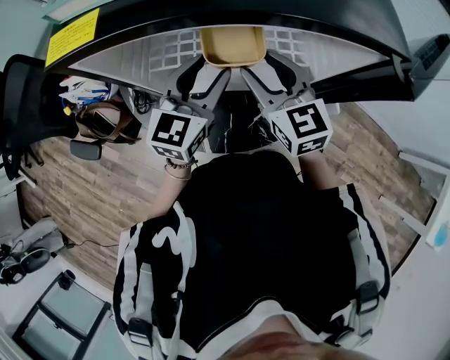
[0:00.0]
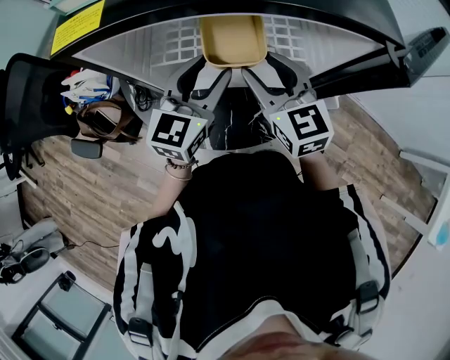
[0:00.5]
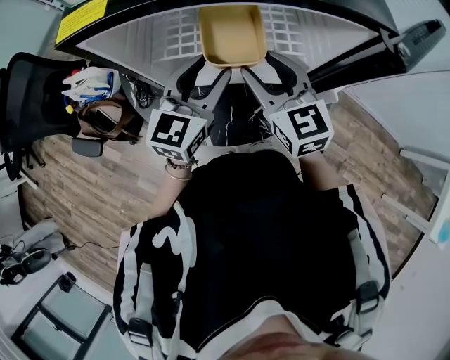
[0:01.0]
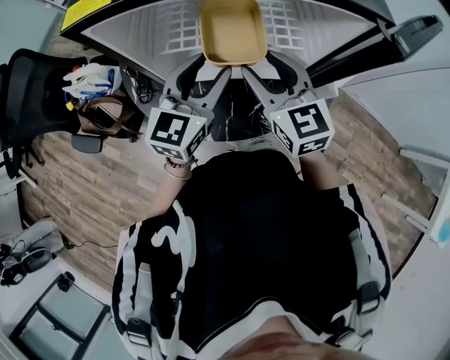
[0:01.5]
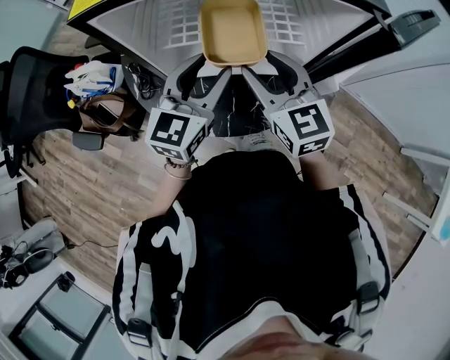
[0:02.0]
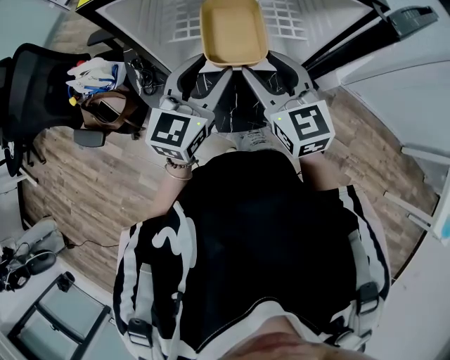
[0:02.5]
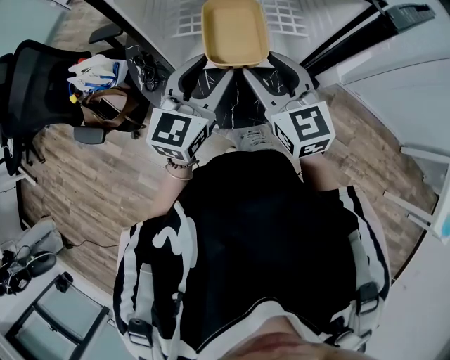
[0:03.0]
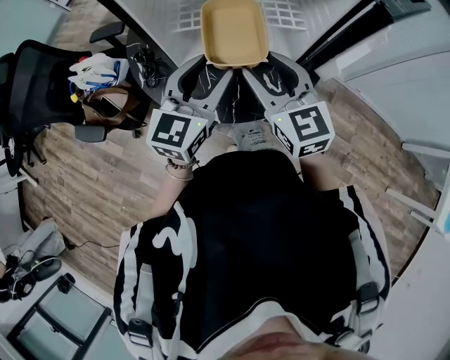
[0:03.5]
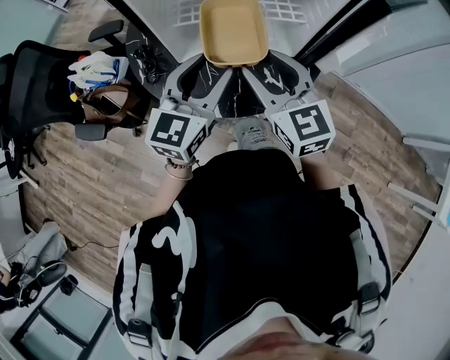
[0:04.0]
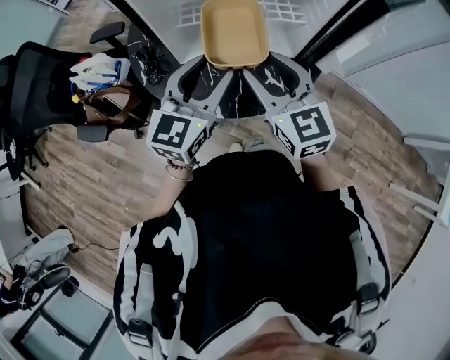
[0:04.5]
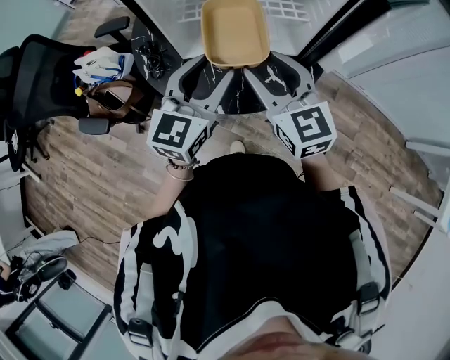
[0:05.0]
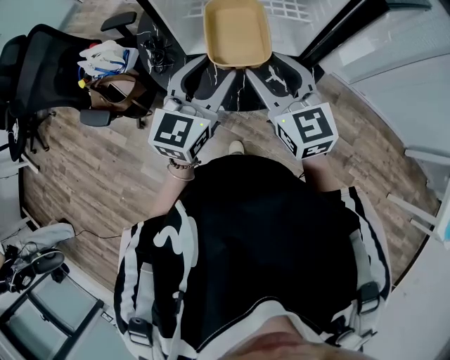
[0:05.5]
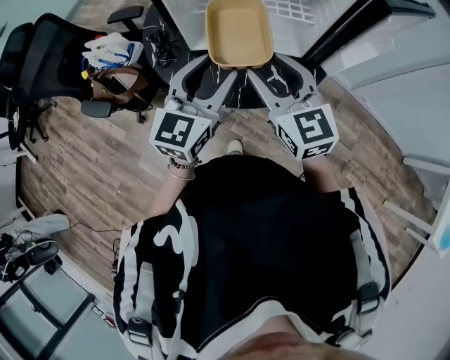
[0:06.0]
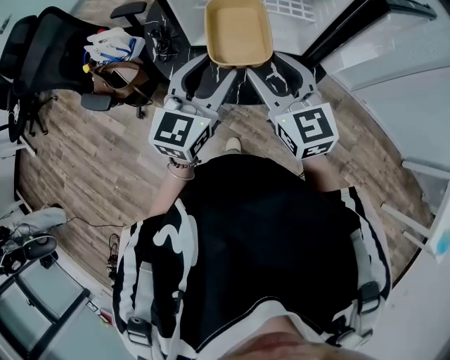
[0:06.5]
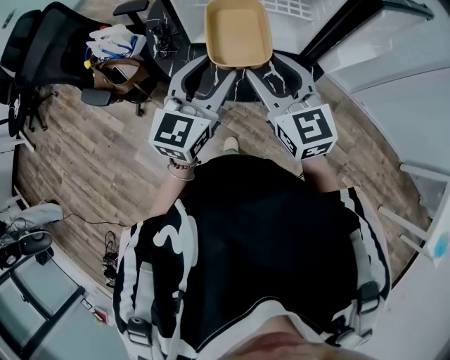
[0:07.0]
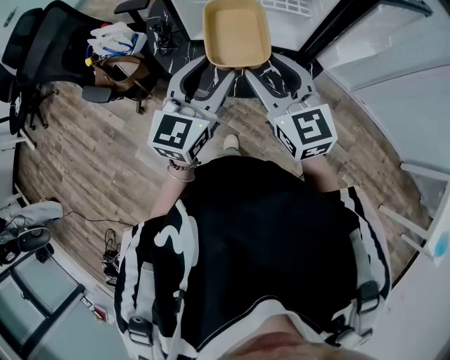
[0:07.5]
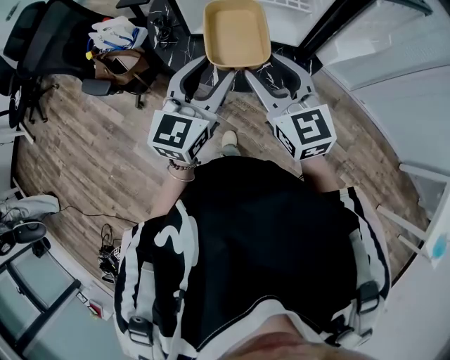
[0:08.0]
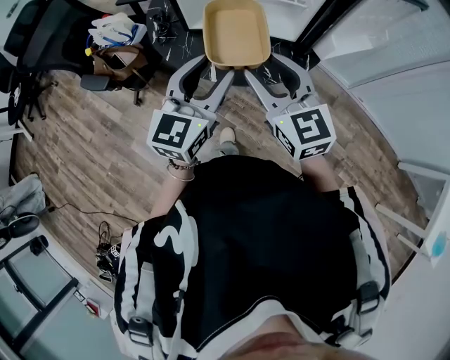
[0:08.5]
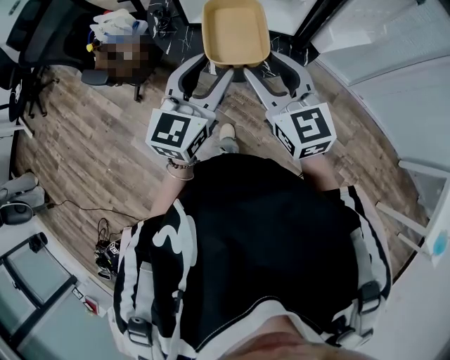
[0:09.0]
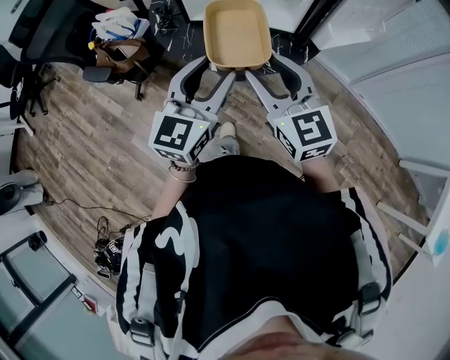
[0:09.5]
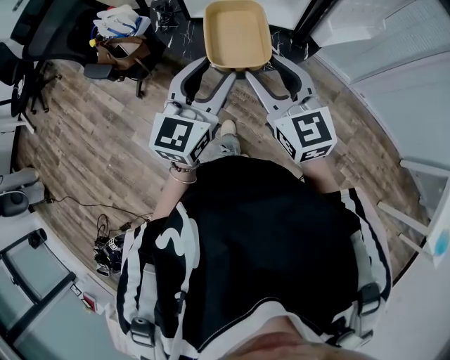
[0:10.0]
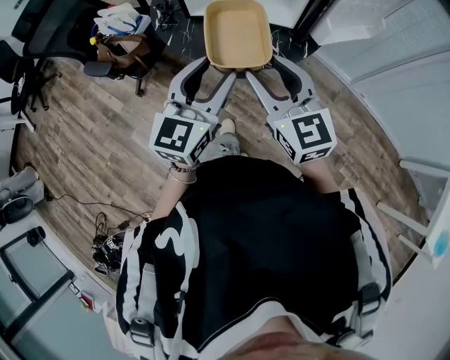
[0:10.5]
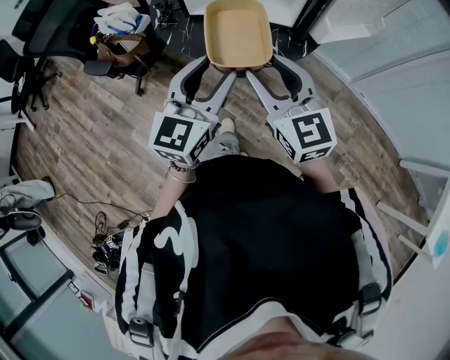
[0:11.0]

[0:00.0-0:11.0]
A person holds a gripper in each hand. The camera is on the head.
0:00.0 to 0:02.0: The two grippers go some 5 cm backward.
0:02.0 to 0:03.5: The two grippers go roughly 5 cm backward.
0:03.5 to 0:05.5: There are only small adjustments of the grippers.
0:05.5 to 0:07.5: Both grippers travel together backward, approximately 5 cm.
0:07.5 to 0:09.0: Both grippers move backward, some 5 cm.
0:09.0 to 0:11.0: The left gripper shifts roughly 5 cm backward. The right gripper changes place by some 5 cm.

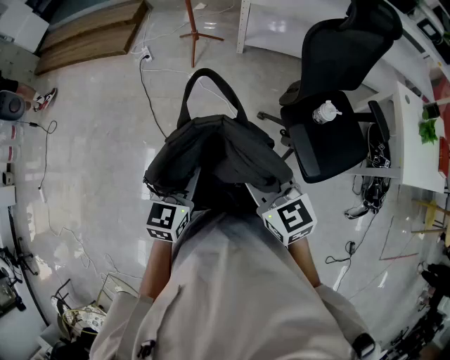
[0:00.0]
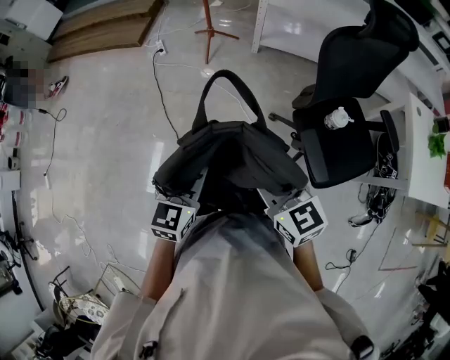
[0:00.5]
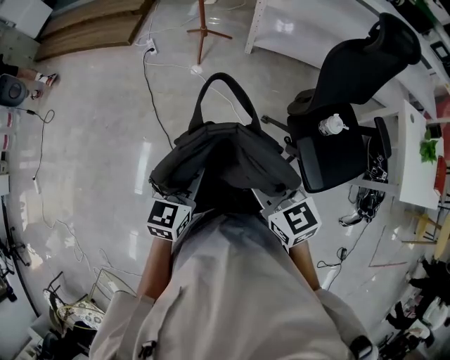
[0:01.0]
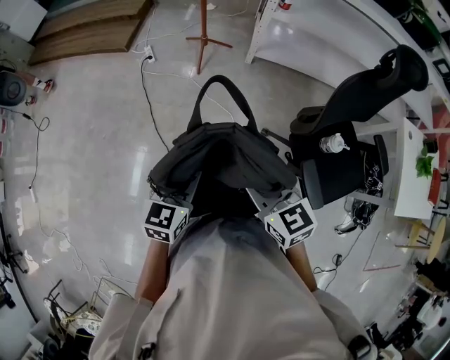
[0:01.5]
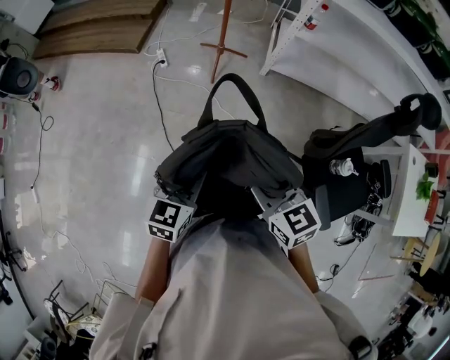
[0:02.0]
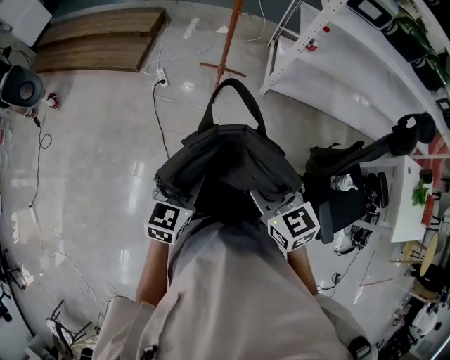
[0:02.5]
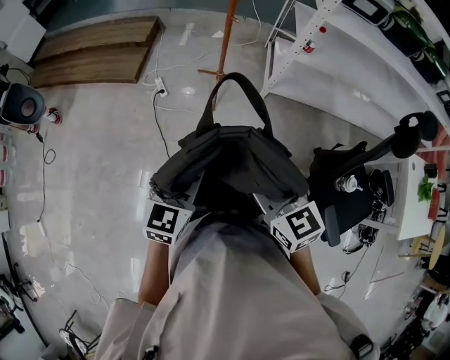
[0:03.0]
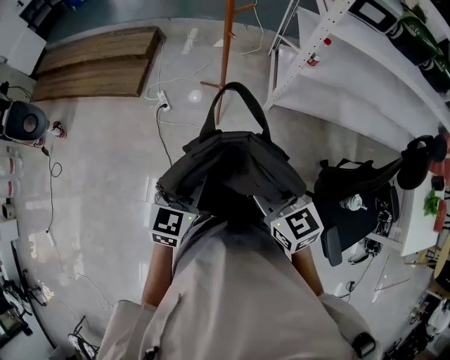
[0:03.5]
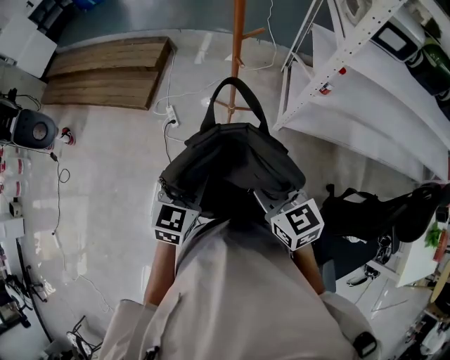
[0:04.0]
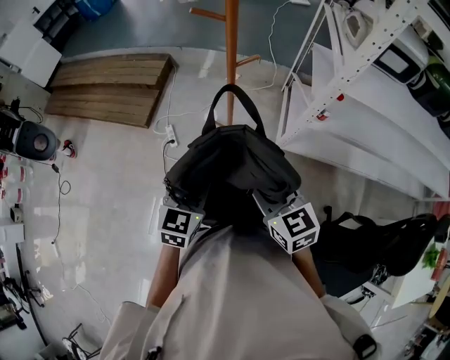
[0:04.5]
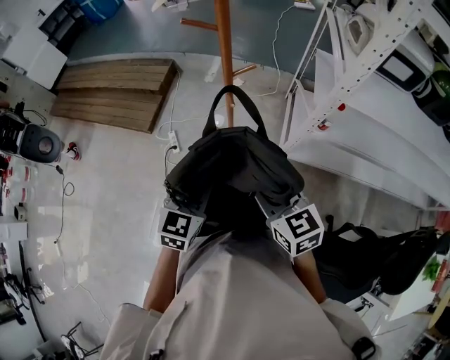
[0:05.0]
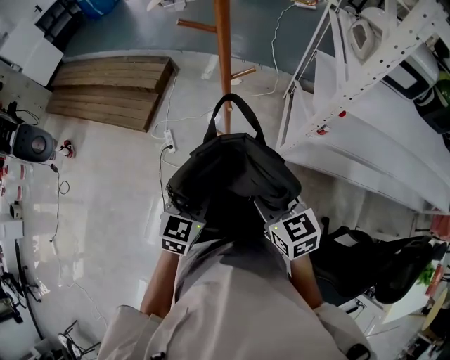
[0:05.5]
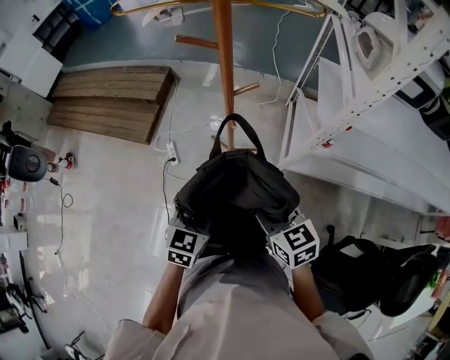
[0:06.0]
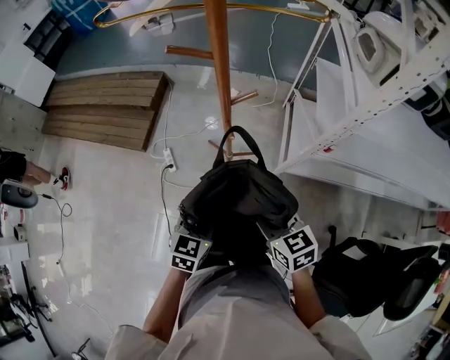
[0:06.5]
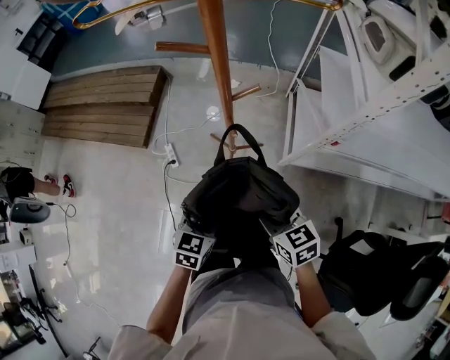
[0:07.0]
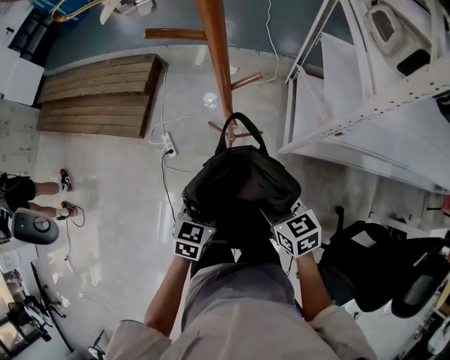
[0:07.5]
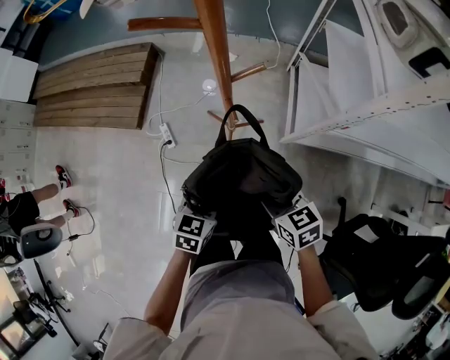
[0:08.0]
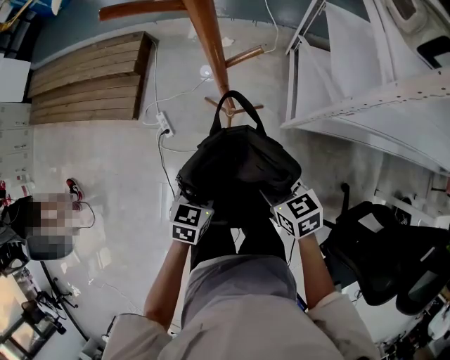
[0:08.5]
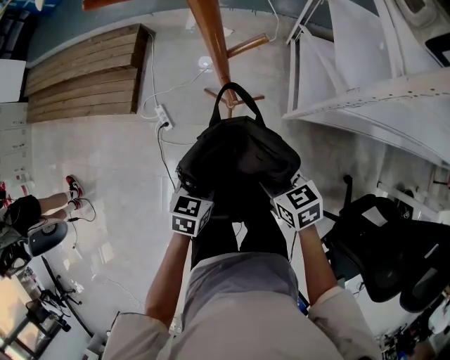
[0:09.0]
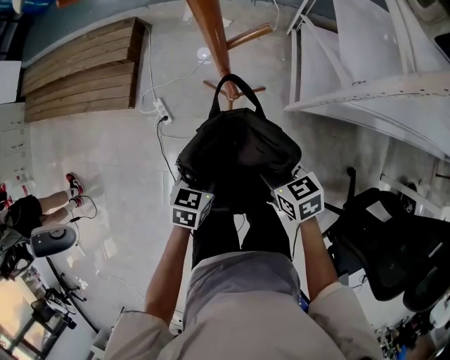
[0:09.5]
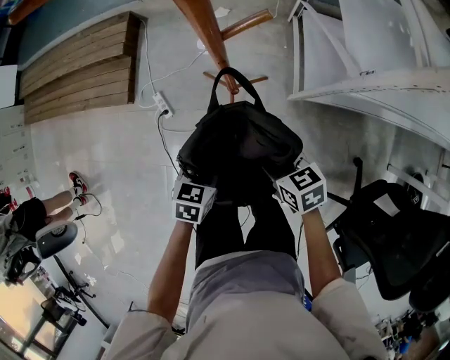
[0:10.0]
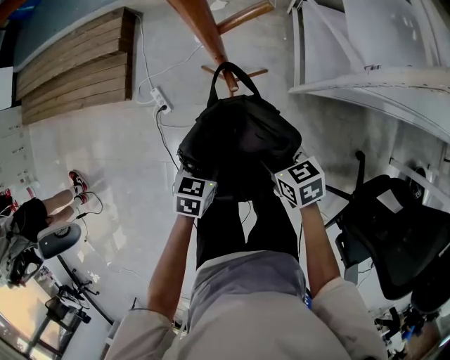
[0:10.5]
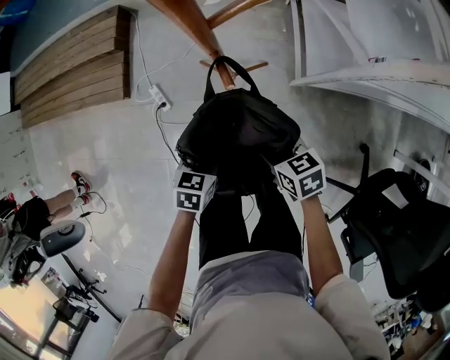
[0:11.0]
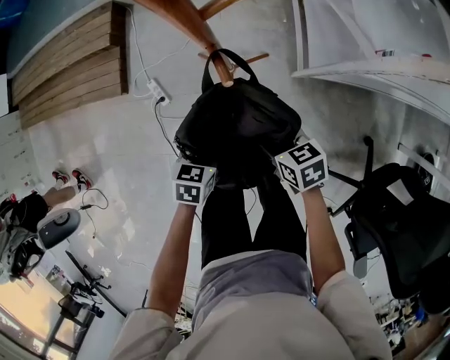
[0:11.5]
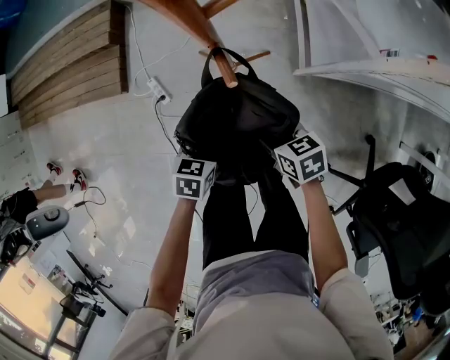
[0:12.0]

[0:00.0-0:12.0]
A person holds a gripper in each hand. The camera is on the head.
0:00.0 to 0:02.0: The grippers both shift forward and to the left by about 30 cm.
0:02.0 to 0:04.0: The two grippers go about 35 cm forward.
0:04.0 to 0:06.0: The right gripper moves forward and to the right, approximately 20 cm. Meanwhile the left gripper goes some 20 cm forward, to the right and downward.
0:06.0 to 0:08.0: The grippers both shift downward and forward by about 15 cm.
0:08.0 to 0:10.0: Both grippers move downward, approximately 10 cm.
0:10.0 to 0:12.0: Both grippers travel together downward, roughly 10 cm.

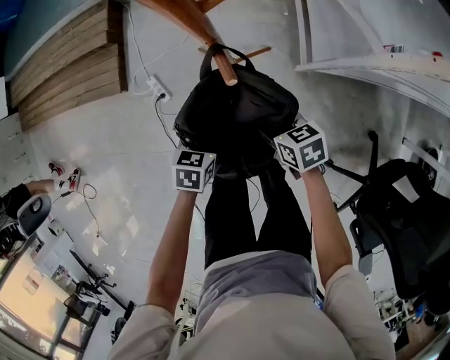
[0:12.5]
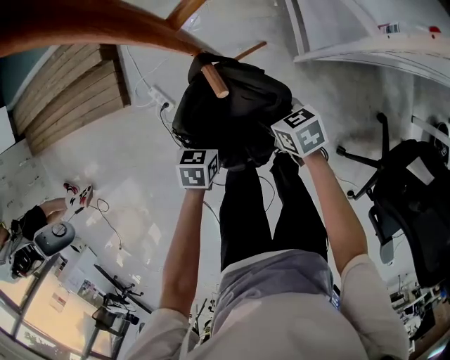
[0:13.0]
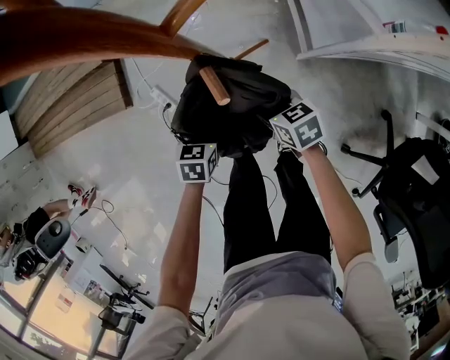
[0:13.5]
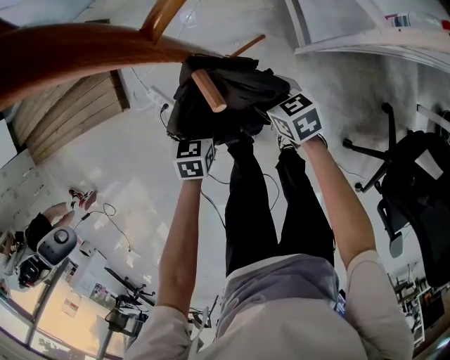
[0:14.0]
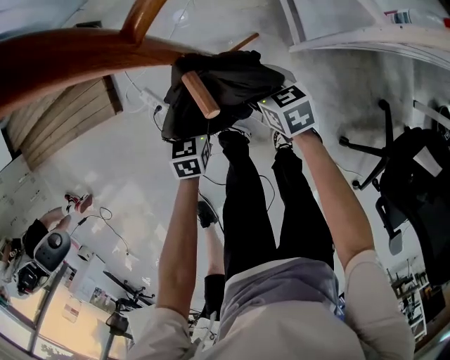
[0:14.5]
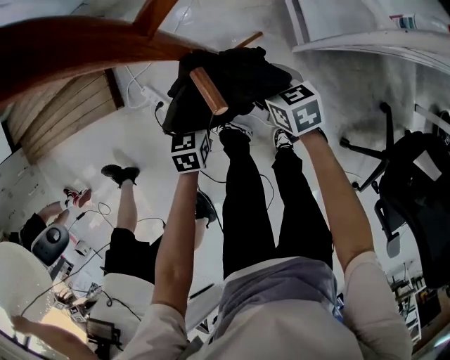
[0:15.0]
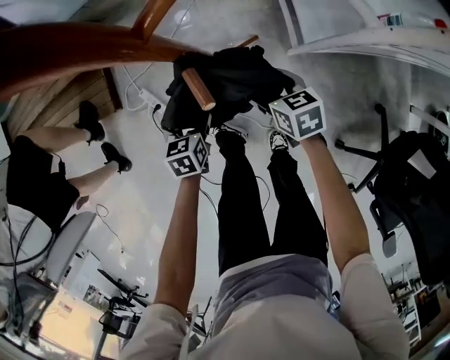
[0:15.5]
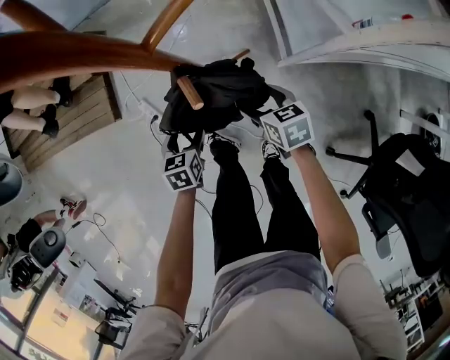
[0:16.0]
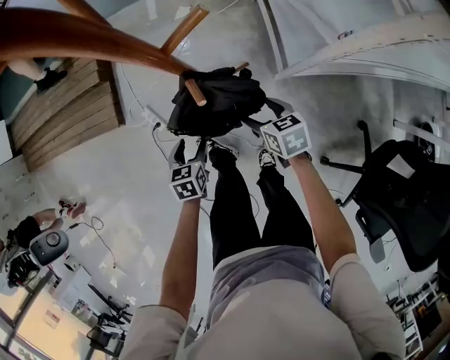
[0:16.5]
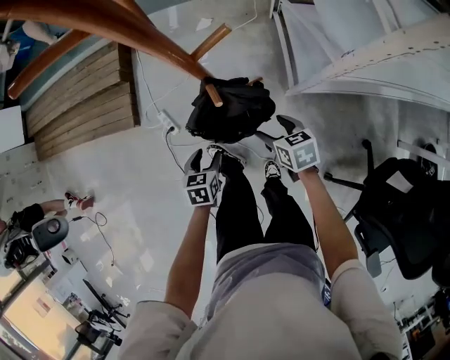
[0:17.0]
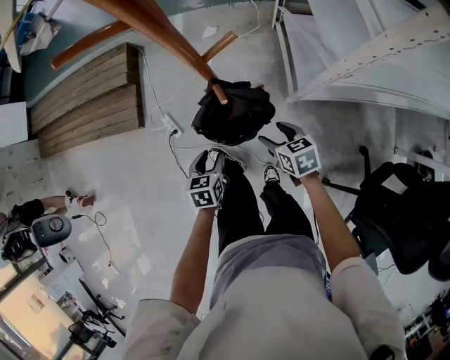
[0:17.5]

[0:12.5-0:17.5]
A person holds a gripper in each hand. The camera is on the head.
0:12.5 to 0:15.0: The grippers both shift forward and downward by about 10 cm. The right gripper opens its fingers. Meanwhile the left gripper opens its fingers.
0:15.0 to 0:17.5: The two grippers go roughly 20 cm upward and backward. The left gripper closes up.
